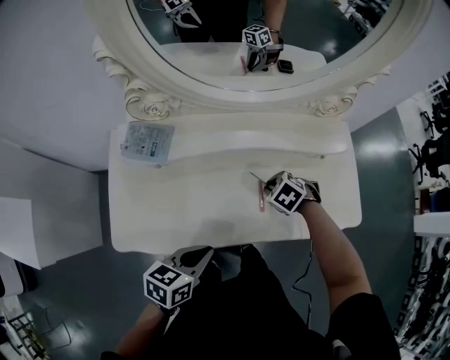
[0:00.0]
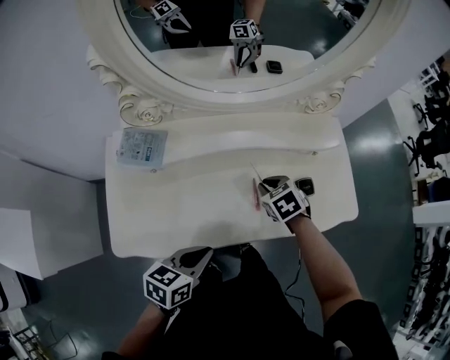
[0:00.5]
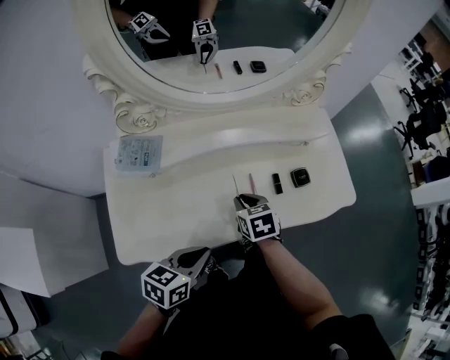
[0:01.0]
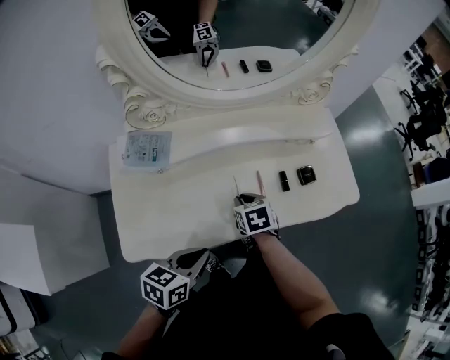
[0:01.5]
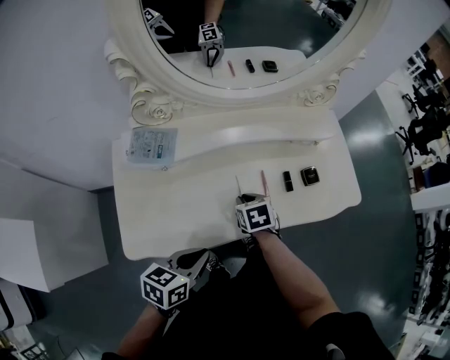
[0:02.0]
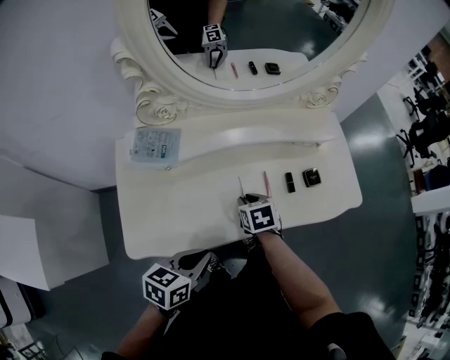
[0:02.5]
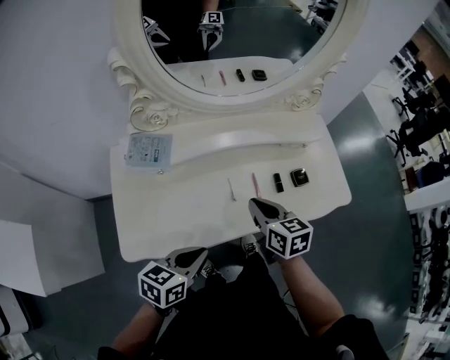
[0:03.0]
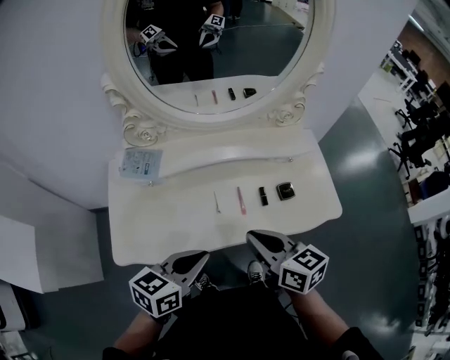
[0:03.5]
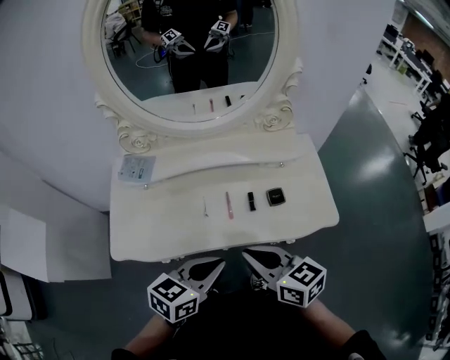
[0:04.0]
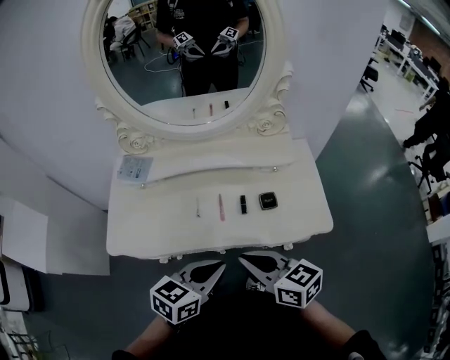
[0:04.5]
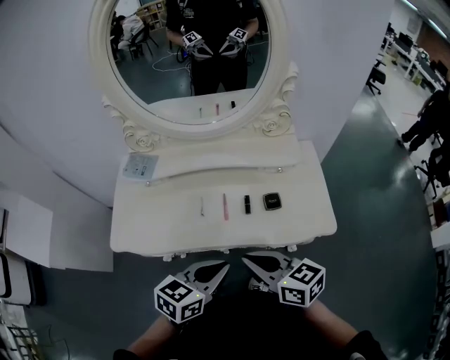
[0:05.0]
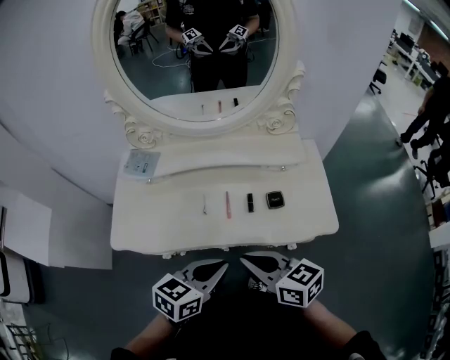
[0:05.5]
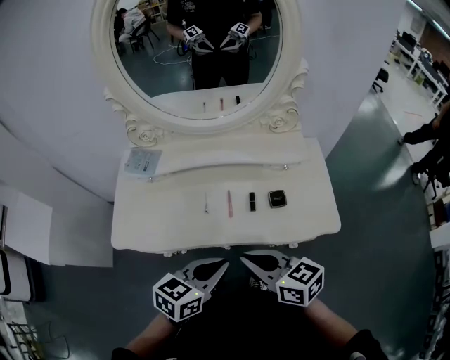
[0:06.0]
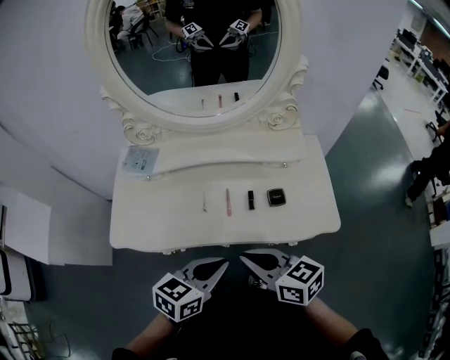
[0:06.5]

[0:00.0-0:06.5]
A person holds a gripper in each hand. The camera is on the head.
0:00.0 to 0:02.0: The left gripper changes place by some 5 cm. Meanwhile the right gripper shifts by about 10 cm, and rotates around the line of its fingers by approximately 50 degrees, clockwise from behind.
0:02.0 to 0:04.5: The right gripper travels upward, to the right and backward by roughly 30 cm, and points its fingers roughly 40 degrees further upward. The left gripper travels to the right and upward by some 25 cm.
0:04.5 to 0:06.5: The grippers move only a little.

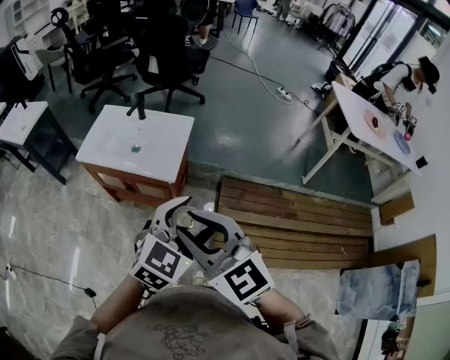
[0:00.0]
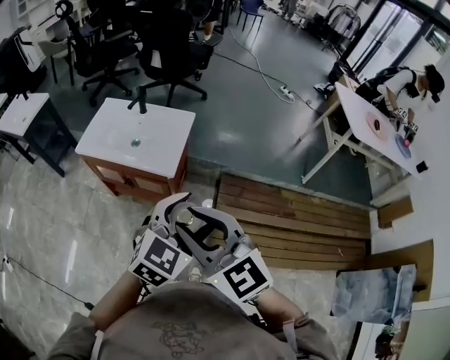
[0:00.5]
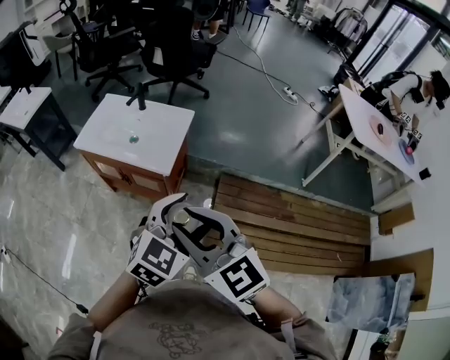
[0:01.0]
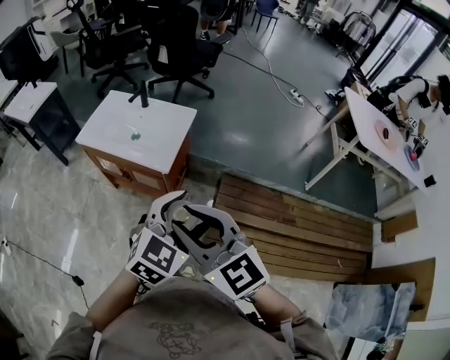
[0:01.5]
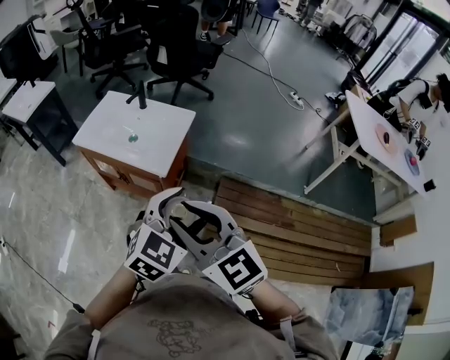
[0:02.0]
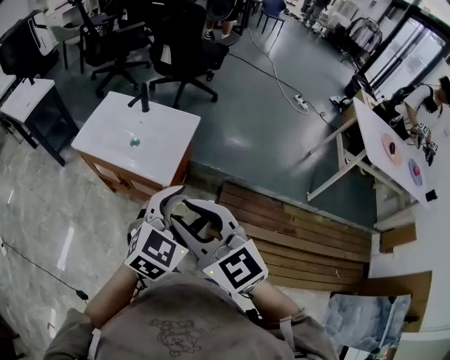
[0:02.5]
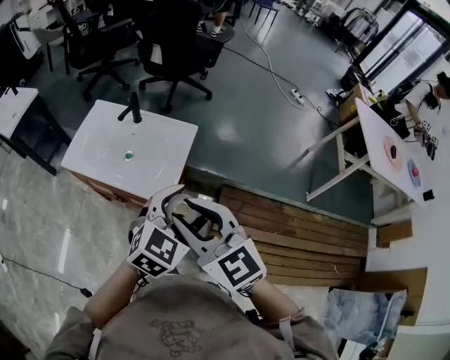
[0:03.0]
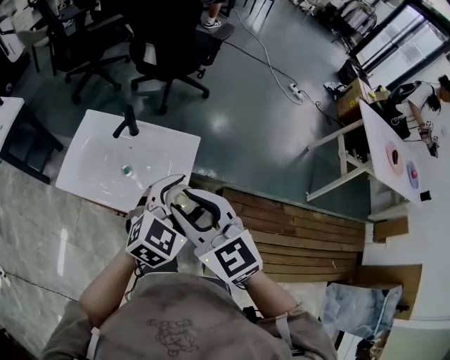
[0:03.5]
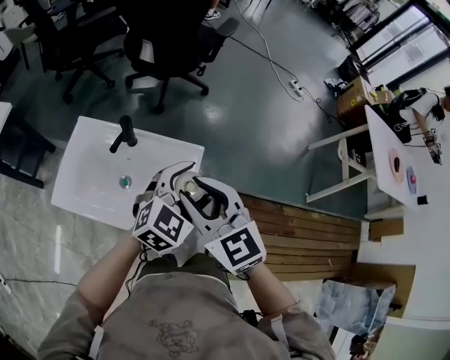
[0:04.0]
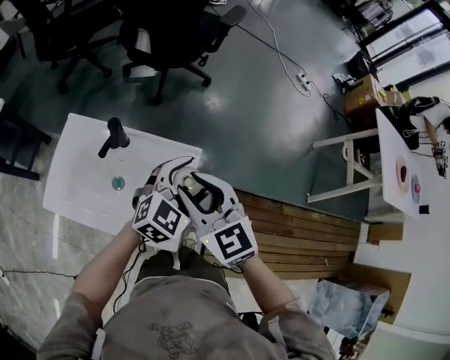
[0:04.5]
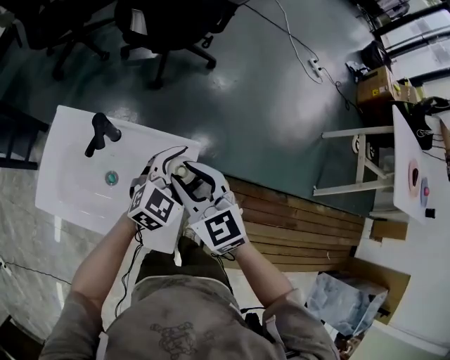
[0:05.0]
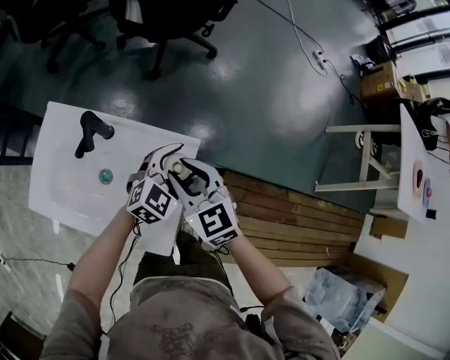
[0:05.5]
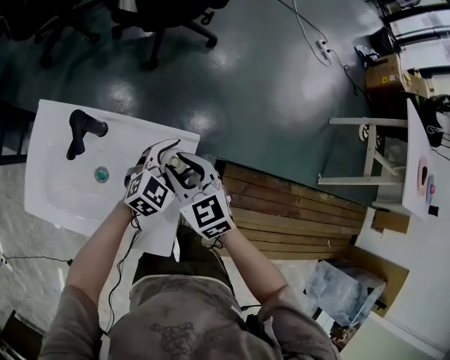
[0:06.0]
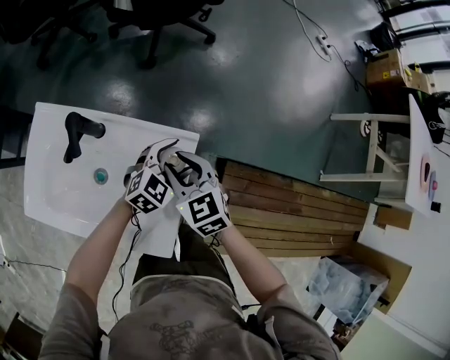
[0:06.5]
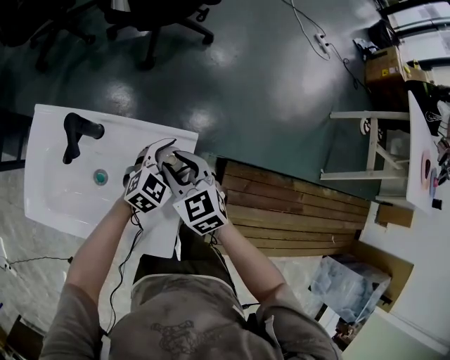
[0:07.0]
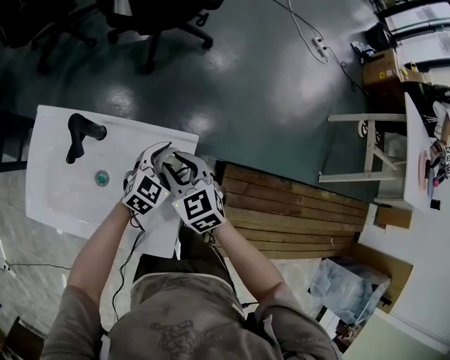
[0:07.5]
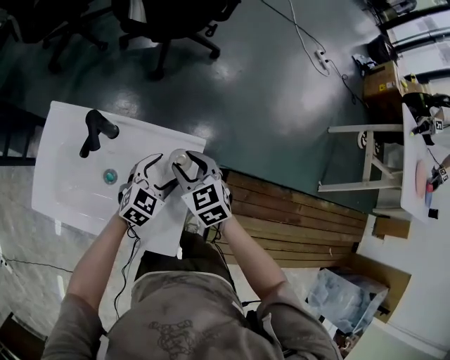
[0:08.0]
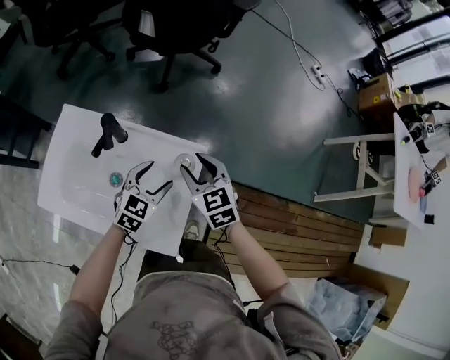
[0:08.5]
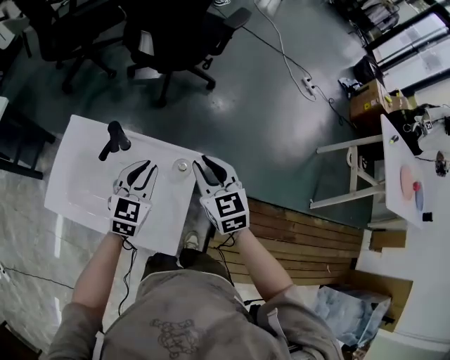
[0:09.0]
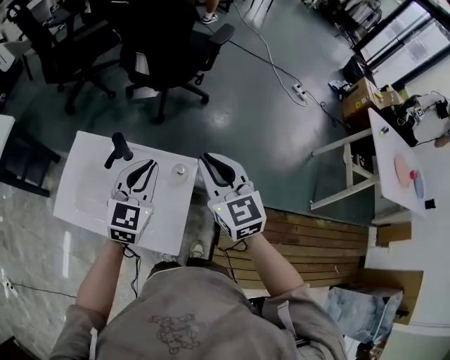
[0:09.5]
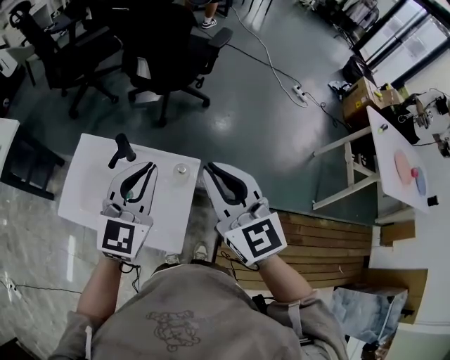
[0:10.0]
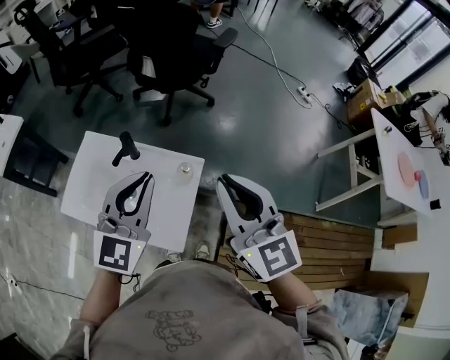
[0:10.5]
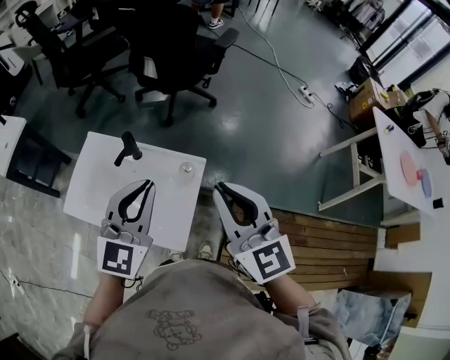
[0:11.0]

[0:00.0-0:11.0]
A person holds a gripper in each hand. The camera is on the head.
0:00.0 to 0:02.0: The right gripper ends up roughly 5 cm from where it was. The left gripper shifts by roughly 5 cm.
0:02.0 to 0:03.5: Both grippers move forward, roughly 30 cm.
0:03.5 to 0:05.5: Both grippers move forward and downward, about 35 cm.
0:05.5 to 0:07.5: The grippers both shift downward by about 10 cm.
0:07.5 to 0:09.0: The left gripper is displaced upward and to the left by some 20 cm, swivels approximately 30 degrees, and closes its fingers; the right gripper travels upward by about 15 cm.
0:09.0 to 0:11.0: Both grippers move upward and backward, approximately 25 cm. The right gripper swivels roughly 20 degrees.

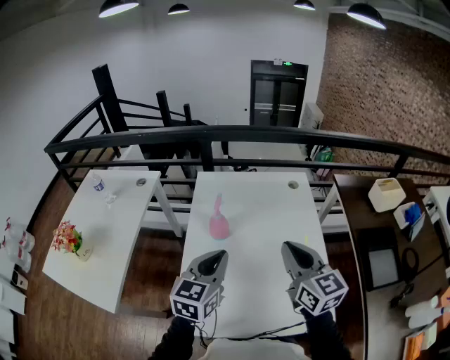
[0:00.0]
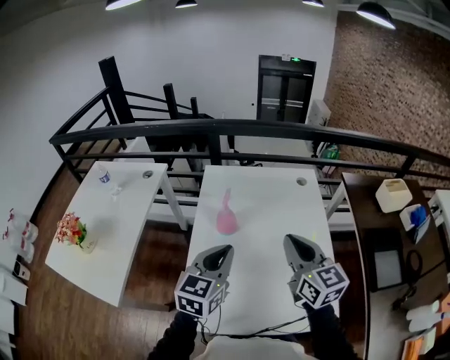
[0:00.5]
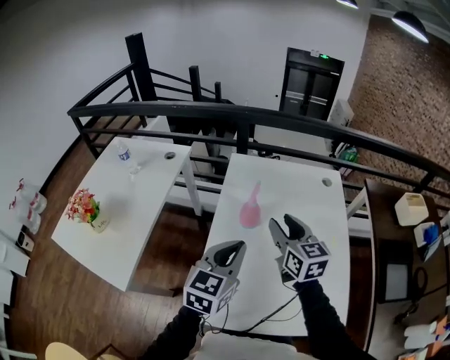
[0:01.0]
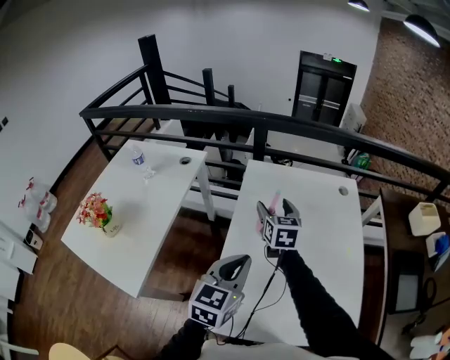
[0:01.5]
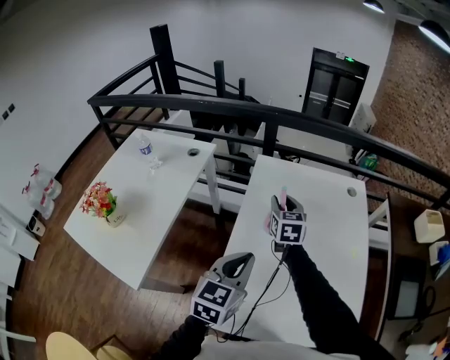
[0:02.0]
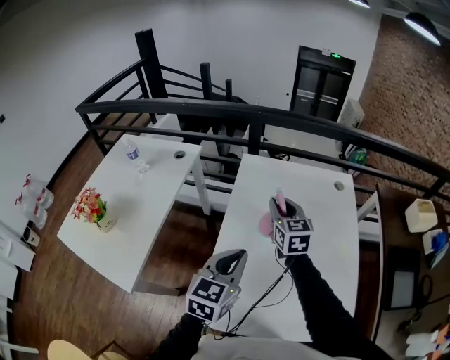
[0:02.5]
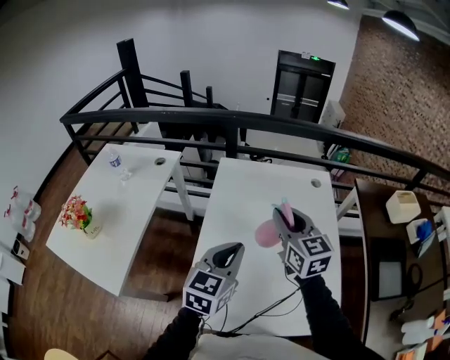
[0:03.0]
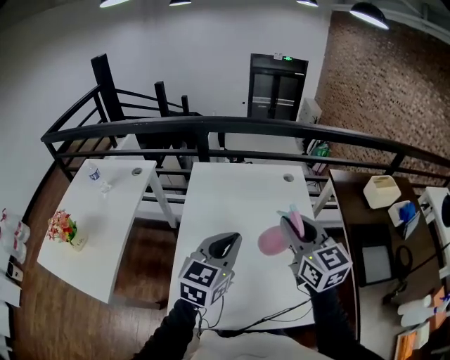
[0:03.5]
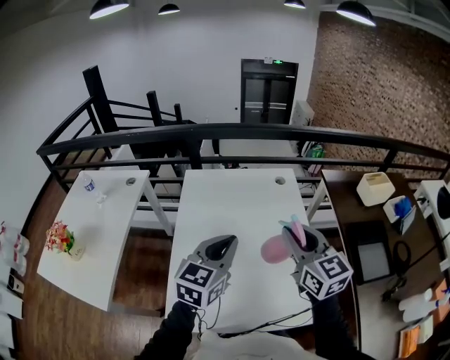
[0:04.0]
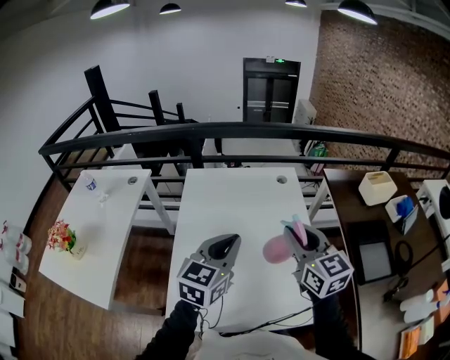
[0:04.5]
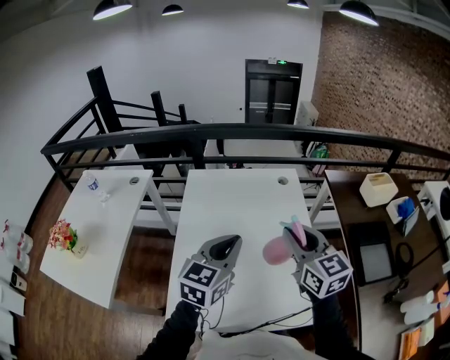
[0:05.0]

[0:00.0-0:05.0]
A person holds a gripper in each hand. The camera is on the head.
0:00.0 to 0:02.5: The left gripper moves to the left, about 10 cm. Meanwhile the right gripper is displaced forward, to the left and downward by roughly 30 cm, and opens, then closes again.
0:02.5 to 0:05.0: The left gripper heads to the right and upward, covering about 25 cm. The right gripper heads to the right, backward and upward, covering roughly 40 cm.

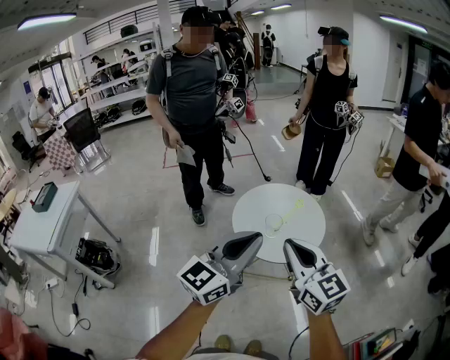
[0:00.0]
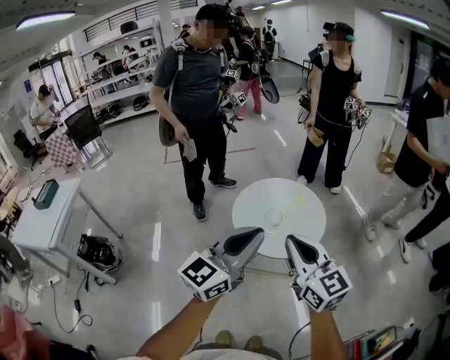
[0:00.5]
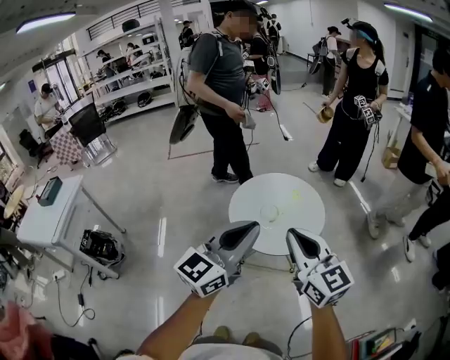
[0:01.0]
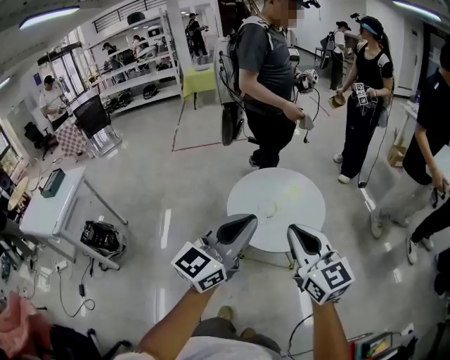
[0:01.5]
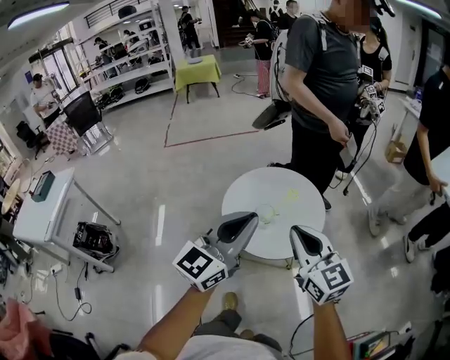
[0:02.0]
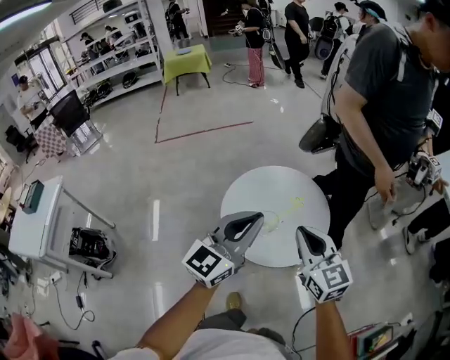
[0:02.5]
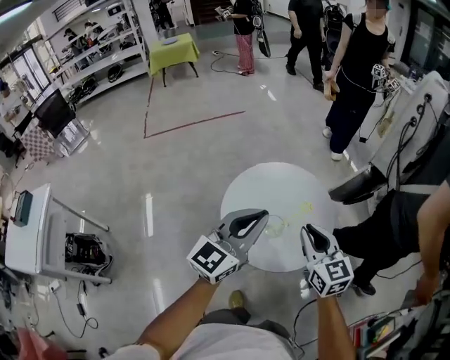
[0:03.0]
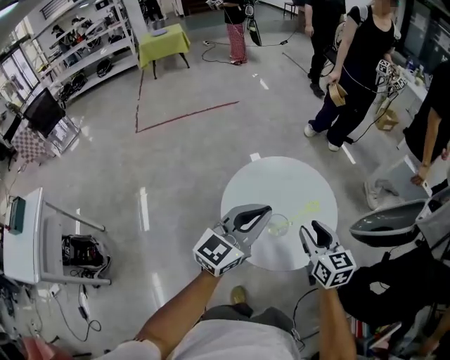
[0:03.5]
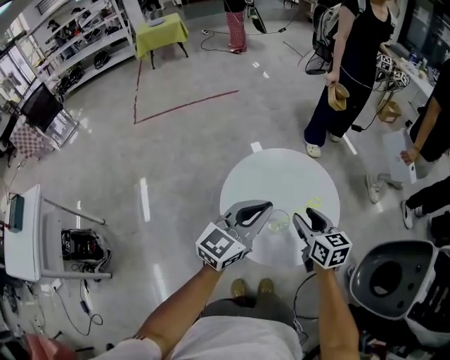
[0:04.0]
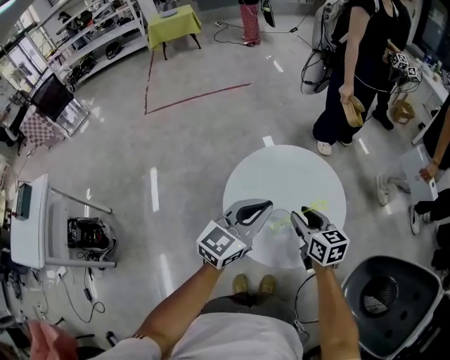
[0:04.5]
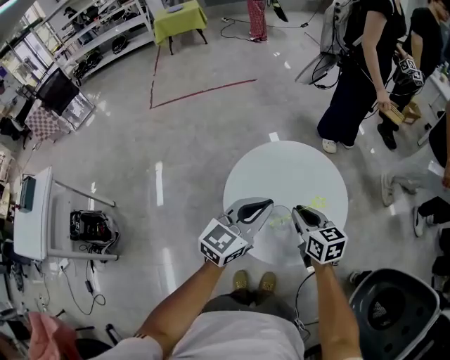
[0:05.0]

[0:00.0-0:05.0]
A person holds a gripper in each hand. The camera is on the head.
0:00.0 to 0:02.5: The right gripper shifts about 20 cm forward and downward, while the left gripper heads forward, covering about 20 cm.
0:02.5 to 0:05.0: The two grippers go some 20 cm downward and forward. The right gripper turns by some 30 degrees, and opens, then closes again.
